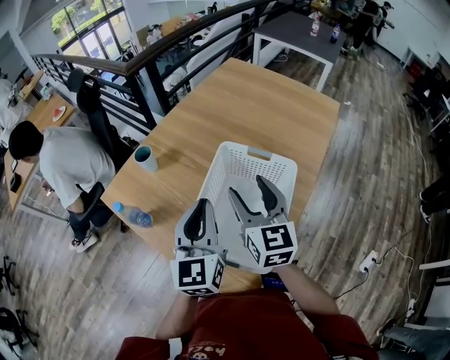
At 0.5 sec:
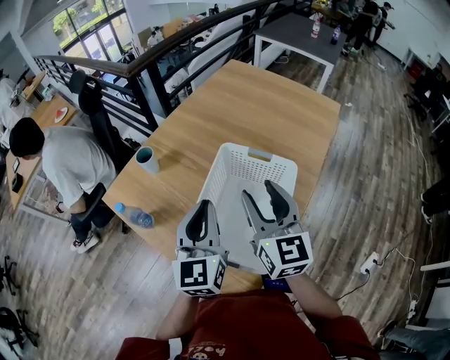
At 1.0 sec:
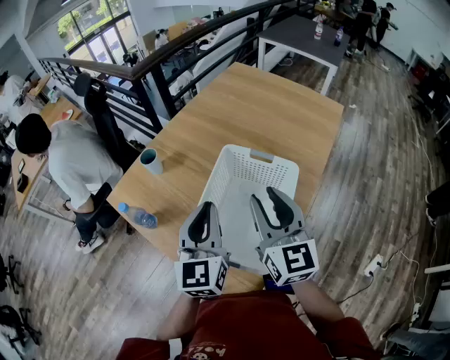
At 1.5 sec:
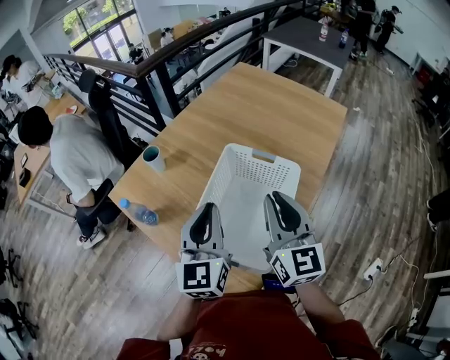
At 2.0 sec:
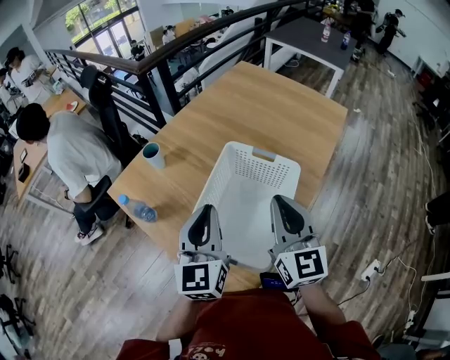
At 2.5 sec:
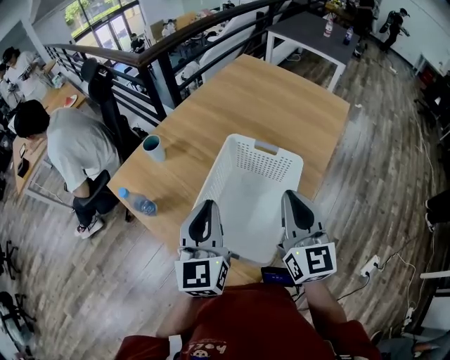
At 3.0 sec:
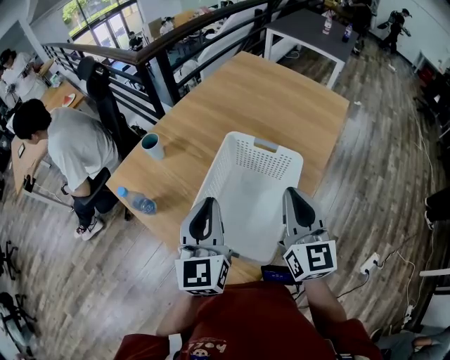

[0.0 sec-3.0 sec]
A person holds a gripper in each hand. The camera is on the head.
0.0 sec to 1.5 sec: The right gripper moves backward, about 5 cm, and closes.
1.5 sec to 3.0 sec: The grippers move only a little.

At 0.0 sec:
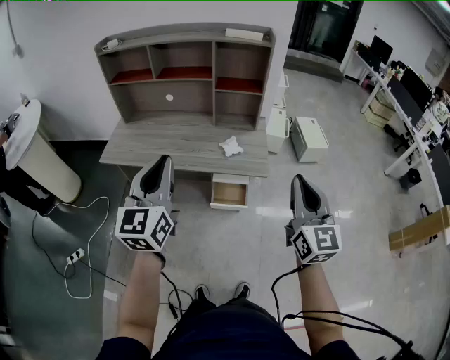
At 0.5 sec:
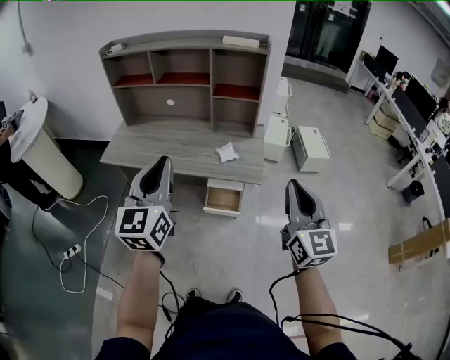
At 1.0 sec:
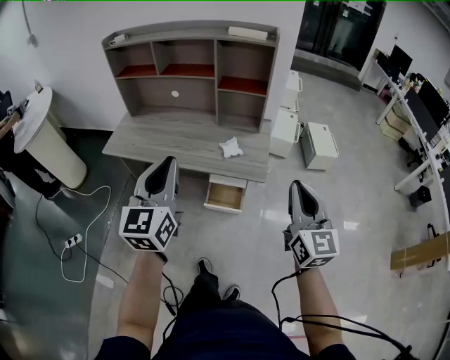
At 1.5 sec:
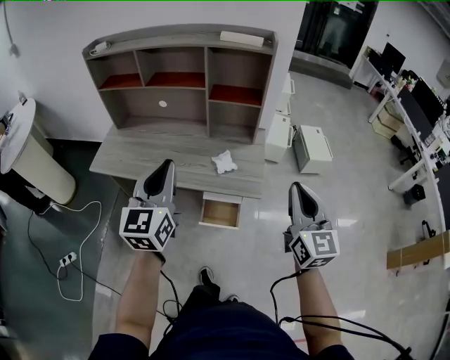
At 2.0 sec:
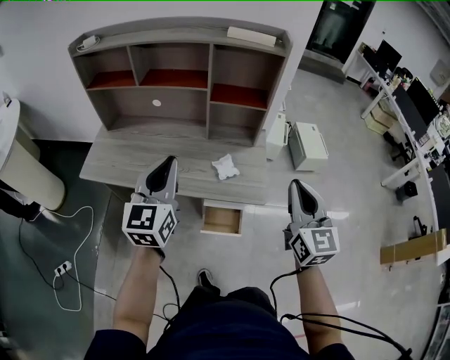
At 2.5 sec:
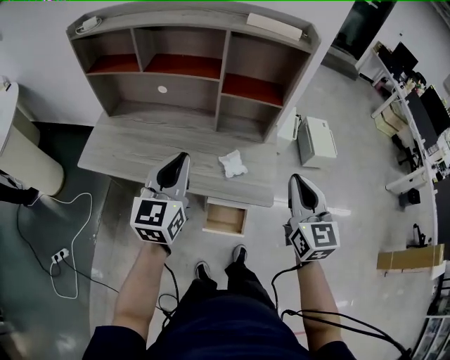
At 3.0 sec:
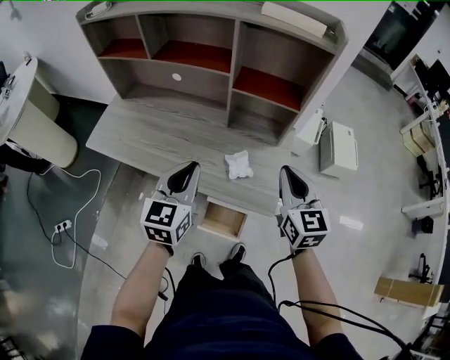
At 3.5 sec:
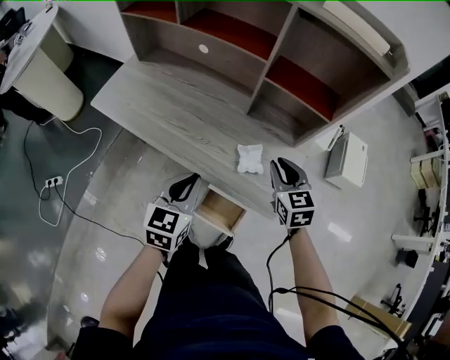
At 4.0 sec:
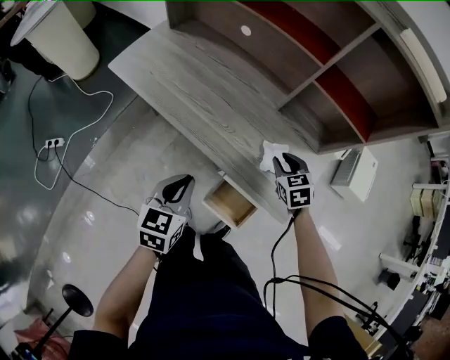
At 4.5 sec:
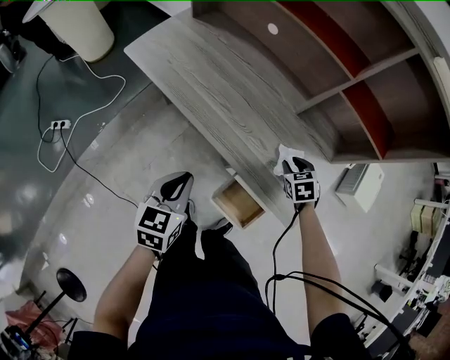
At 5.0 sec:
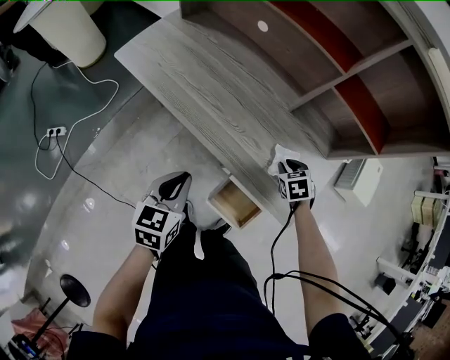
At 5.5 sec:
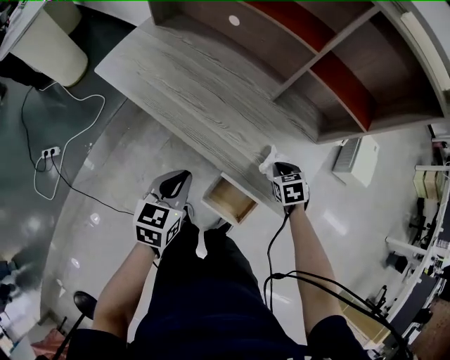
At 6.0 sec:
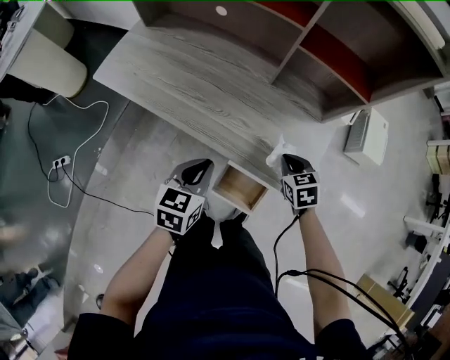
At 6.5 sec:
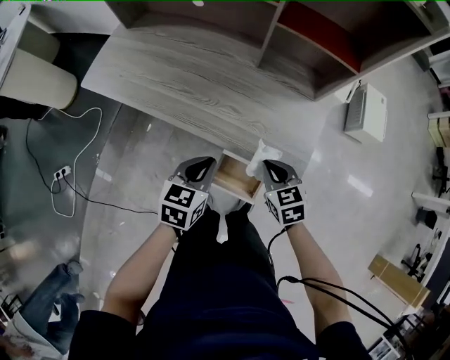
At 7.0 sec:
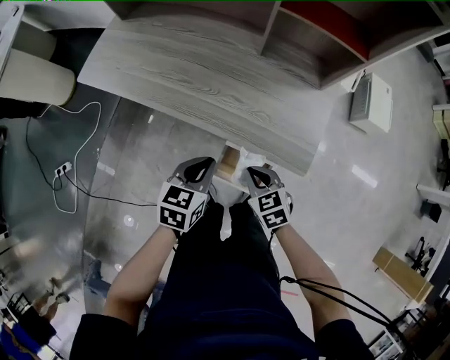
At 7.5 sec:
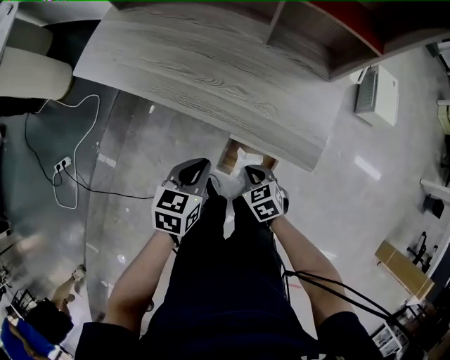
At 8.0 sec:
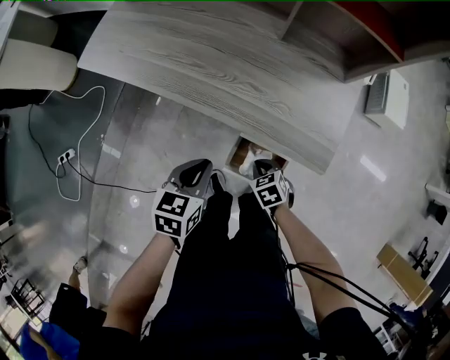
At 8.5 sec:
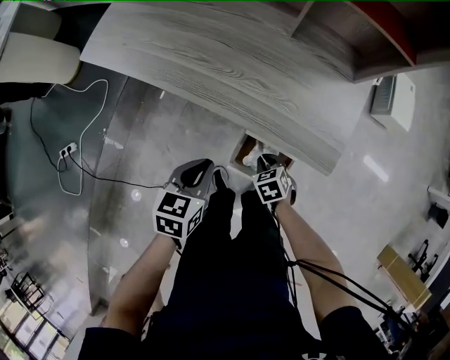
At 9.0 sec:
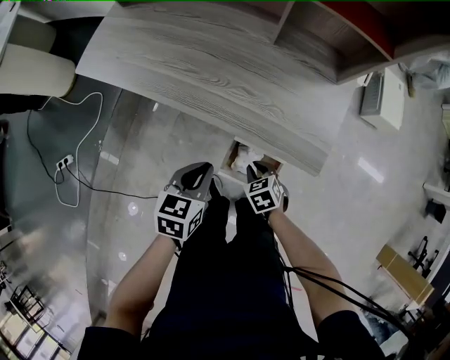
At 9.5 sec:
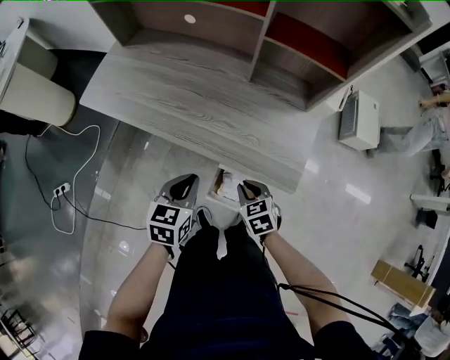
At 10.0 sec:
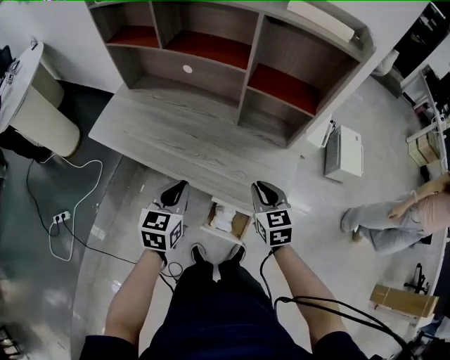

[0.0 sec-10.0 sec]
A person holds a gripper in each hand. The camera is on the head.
0.0 sec to 2.0 sec: Both grippers move forward, some 20 cm.
2.0 sec to 4.0 sec: The right gripper travels downward and forward by about 40 cm, angles its fingers downward, by some 50 degrees, and opens, while the left gripper heads downward, covering some 25 cm, and tips its fingers downward by approximately 30 degrees.
4.0 sec to 6.0 sec: The right gripper moves backward, approximately 5 cm, and closes; the left gripper goes some 5 cm to the right.
6.0 sec to 8.0 sec: The right gripper moves downward, backward and to the left, approximately 25 cm. The left gripper is displaced downward and backward by some 10 cm.
8.0 sec to 10.0 sec: The left gripper moves upward and forward, approximately 15 cm, and swivels some 20 degrees. The right gripper heads upward, covering approximately 30 cm, and tilts its fingers about 30 degrees upward.

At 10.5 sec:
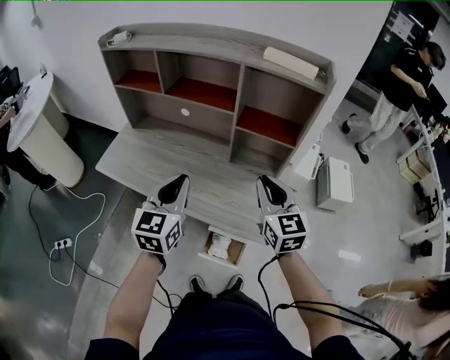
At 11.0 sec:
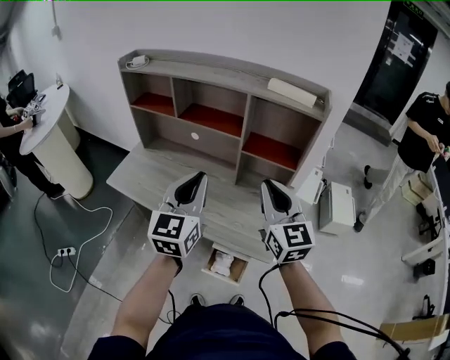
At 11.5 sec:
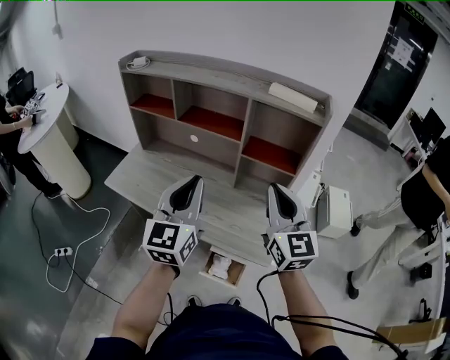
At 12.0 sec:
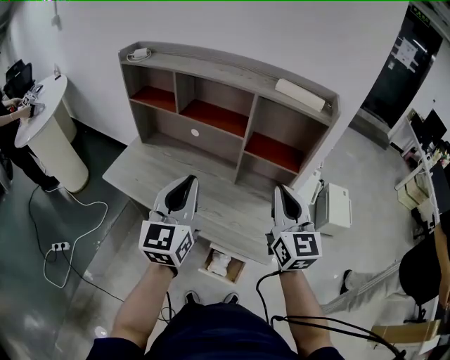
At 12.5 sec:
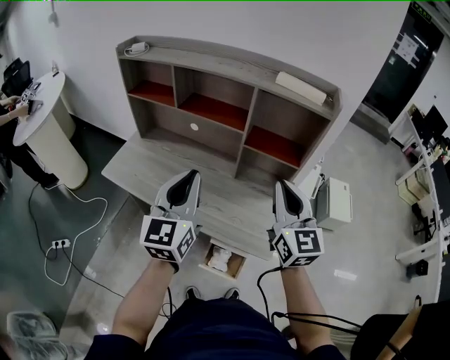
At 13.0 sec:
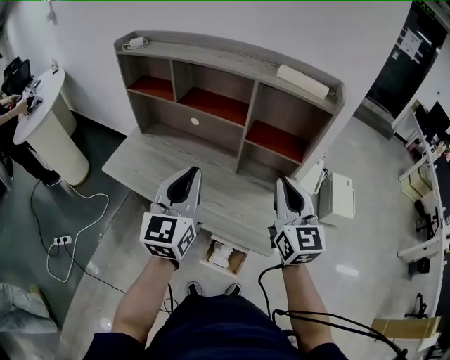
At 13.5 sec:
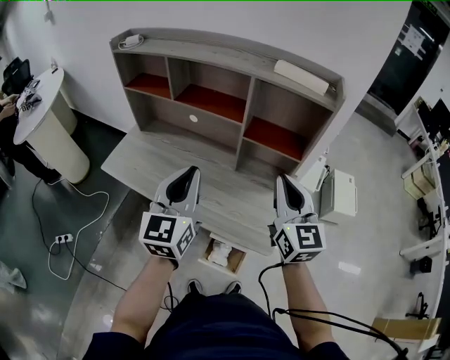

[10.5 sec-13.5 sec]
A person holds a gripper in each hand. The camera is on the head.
10.5 sec to 12.0 sec: Both grippers move upward, approximately 10 cm.
12.0 sec to 13.5 sec: The grippers move only a little.

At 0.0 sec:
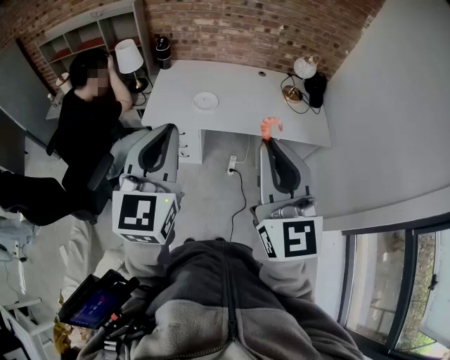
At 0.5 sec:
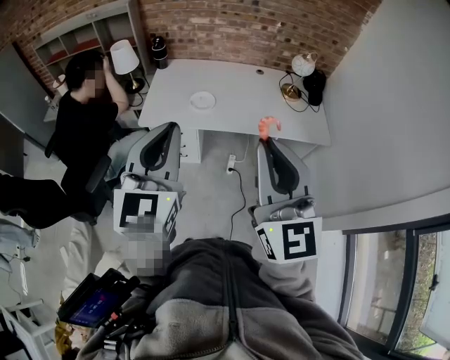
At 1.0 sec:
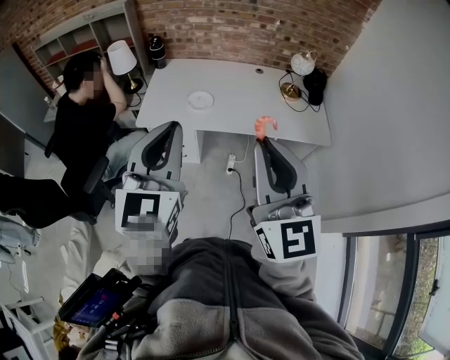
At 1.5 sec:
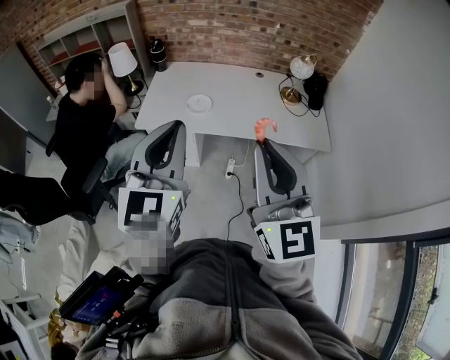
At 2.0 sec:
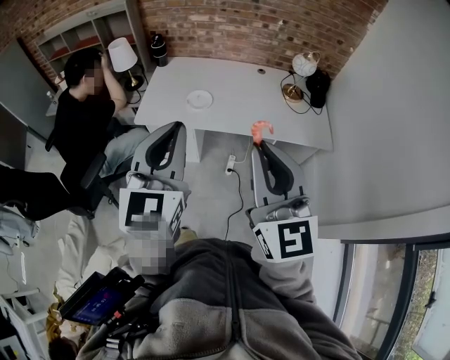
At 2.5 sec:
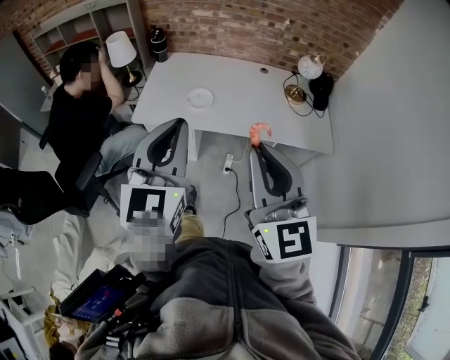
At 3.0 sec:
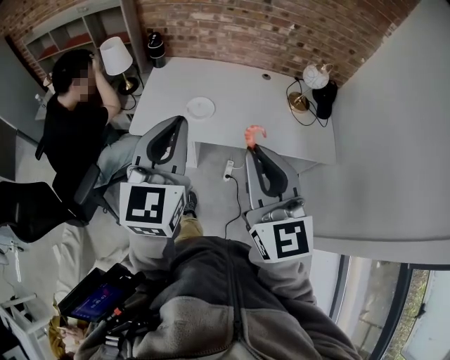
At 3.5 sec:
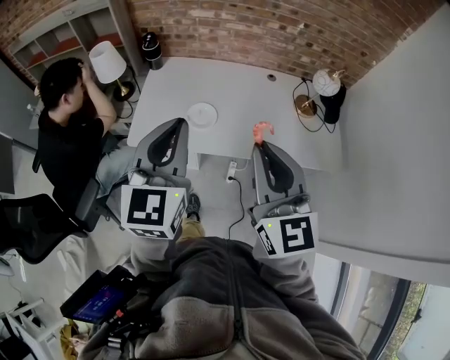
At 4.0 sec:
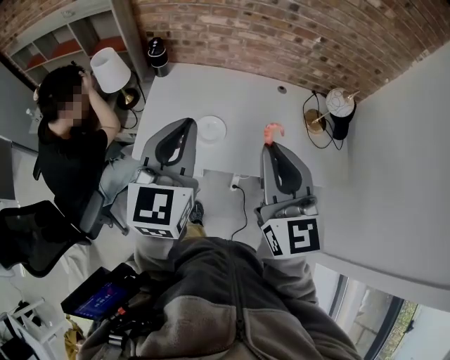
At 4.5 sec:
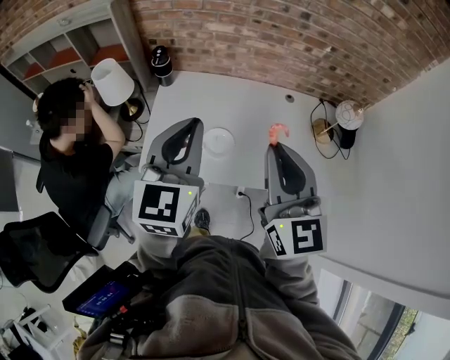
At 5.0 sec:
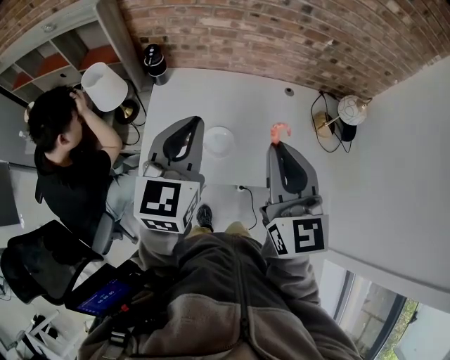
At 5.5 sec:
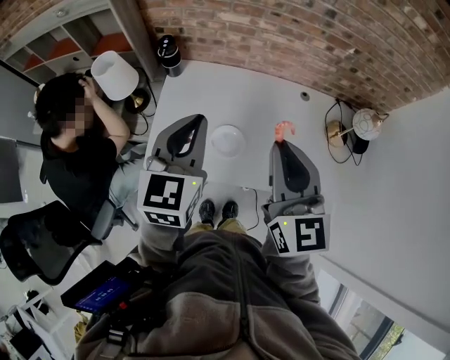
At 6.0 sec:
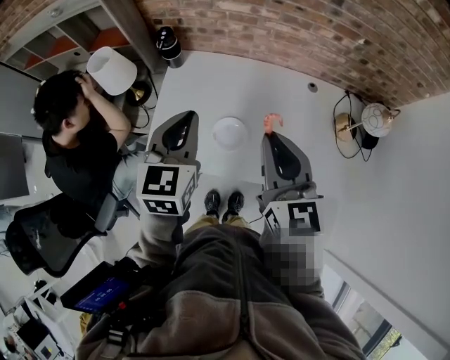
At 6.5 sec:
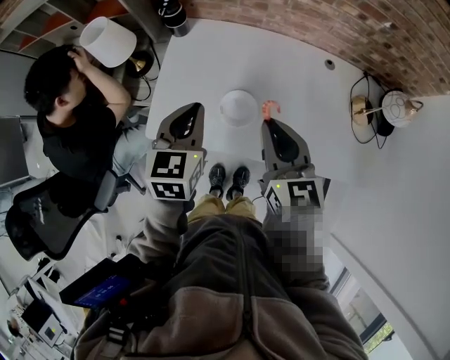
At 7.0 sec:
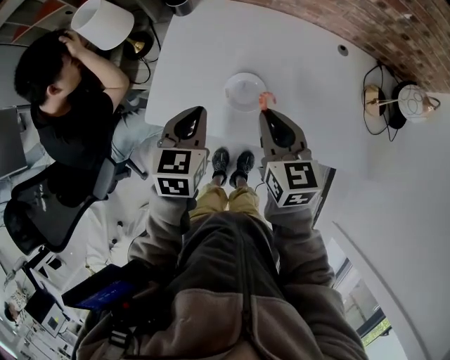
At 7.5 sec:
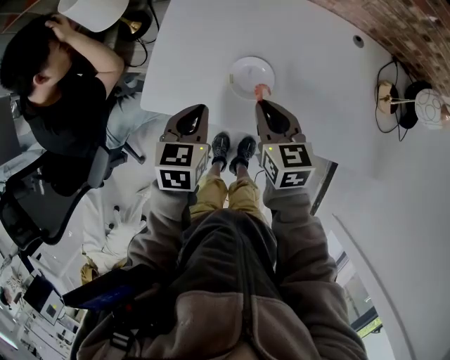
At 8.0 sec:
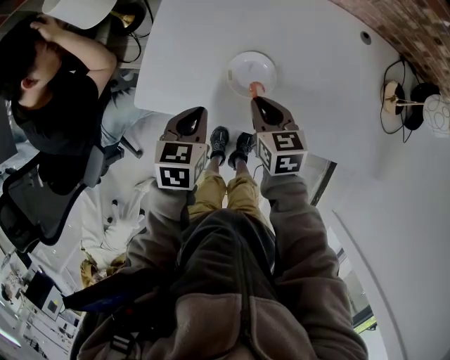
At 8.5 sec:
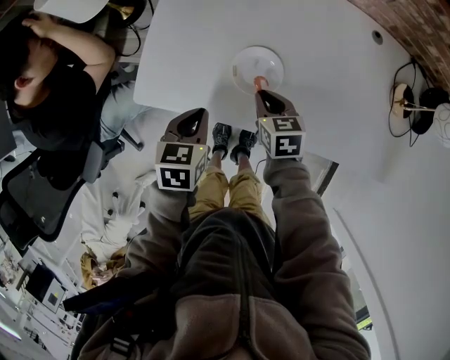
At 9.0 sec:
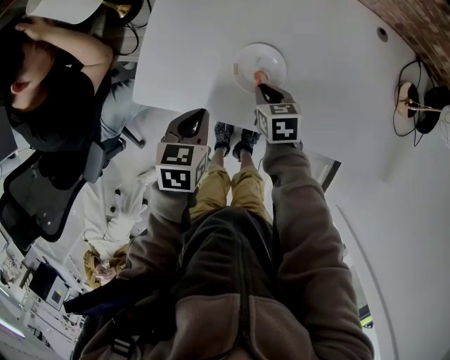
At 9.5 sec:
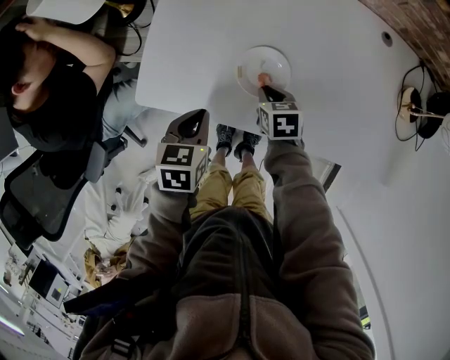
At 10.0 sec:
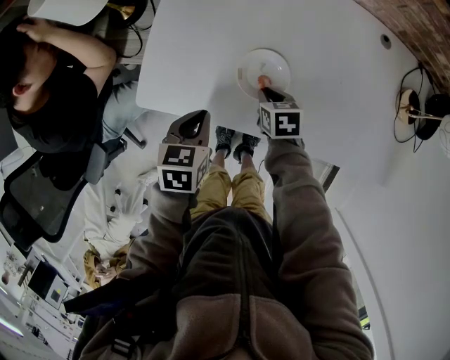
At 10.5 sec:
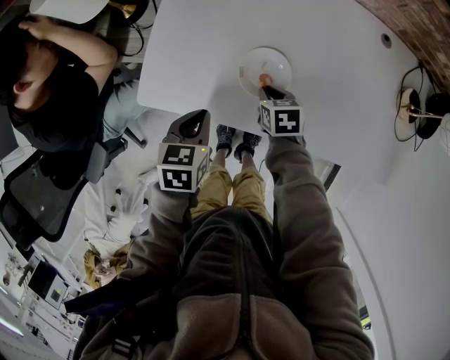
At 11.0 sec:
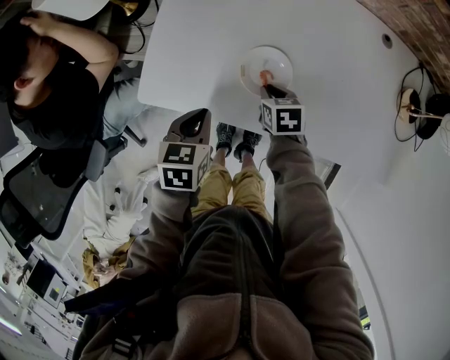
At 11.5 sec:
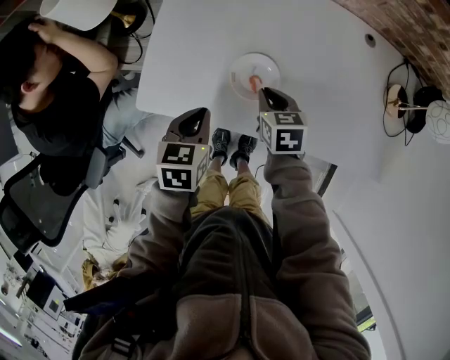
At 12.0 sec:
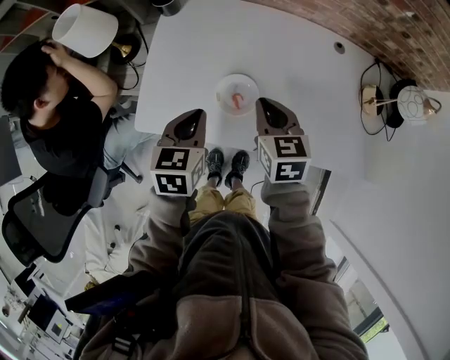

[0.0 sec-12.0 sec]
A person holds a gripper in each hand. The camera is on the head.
0.0 sec to 2.0 sec: The two grippers go roughly 10 cm to the right.
2.0 sec to 4.0 sec: Both grippers move forward, about 30 cm.
4.0 sec to 6.0 sec: Both grippers travel together forward and downward, approximately 20 cm.
6.0 sec to 8.0 sec: The grippers both shift downward by roughly 30 cm. The right gripper tips its fingers downward by about 30 degrees, while the left gripper swivels some 30 degrees.
8.0 sec to 10.0 sec: The right gripper is displaced downward by roughly 15 cm, and changes its angle by approximately 20 degrees.
10.0 sec to 12.0 sec: The left gripper heads upward, covering approximately 10 cm. Meanwhile the right gripper heads upward, covering approximately 25 cm, and turns by roughly 30 degrees.
